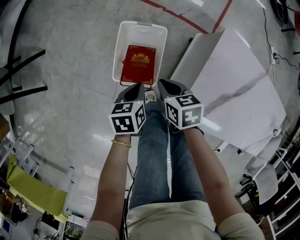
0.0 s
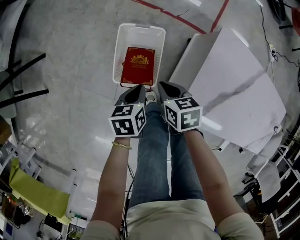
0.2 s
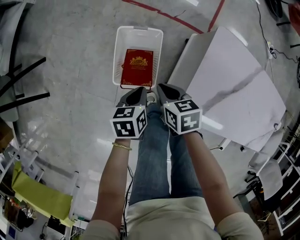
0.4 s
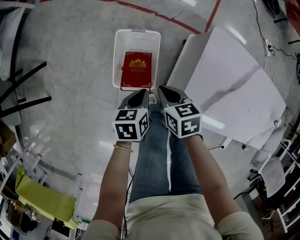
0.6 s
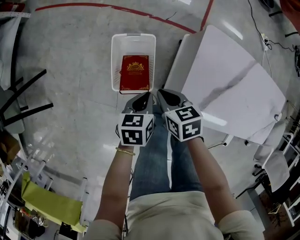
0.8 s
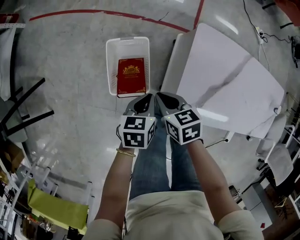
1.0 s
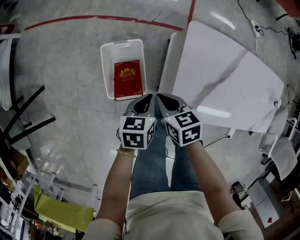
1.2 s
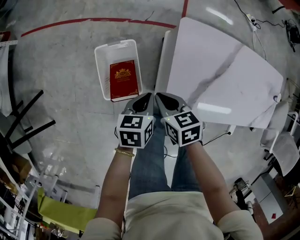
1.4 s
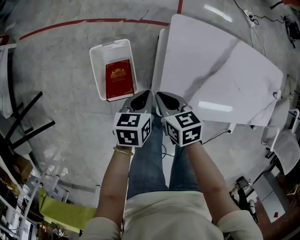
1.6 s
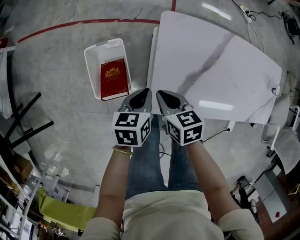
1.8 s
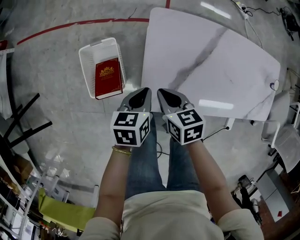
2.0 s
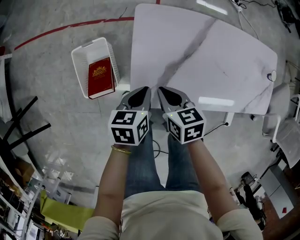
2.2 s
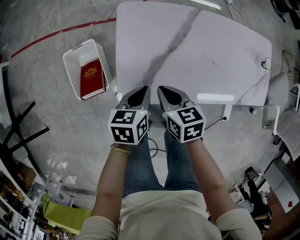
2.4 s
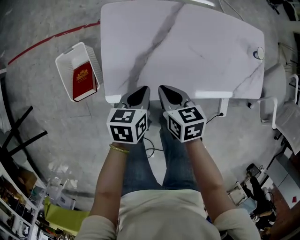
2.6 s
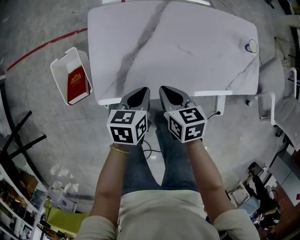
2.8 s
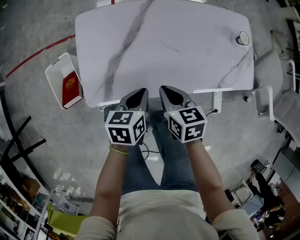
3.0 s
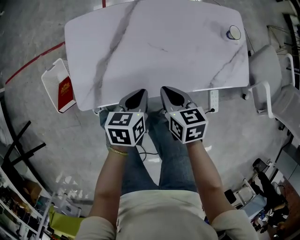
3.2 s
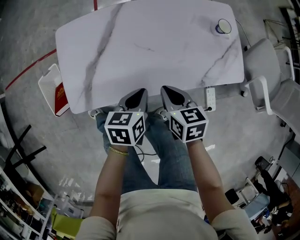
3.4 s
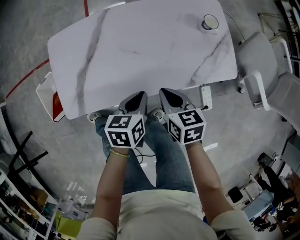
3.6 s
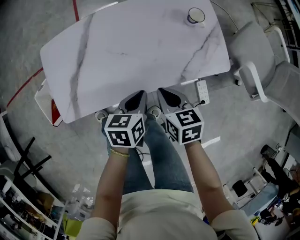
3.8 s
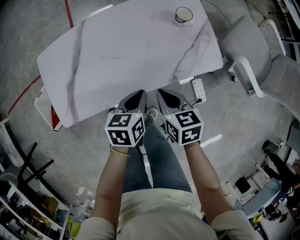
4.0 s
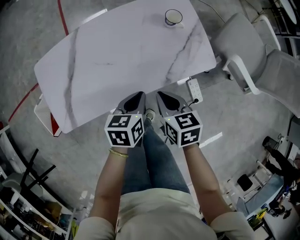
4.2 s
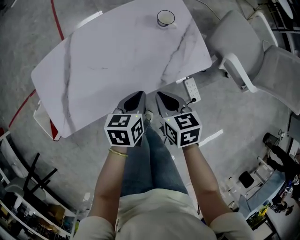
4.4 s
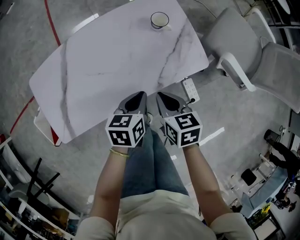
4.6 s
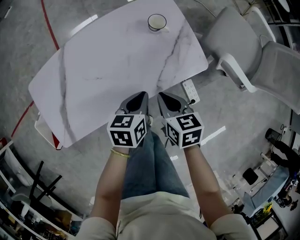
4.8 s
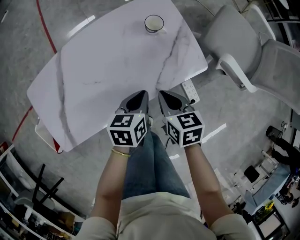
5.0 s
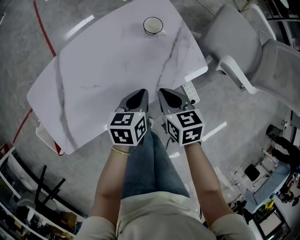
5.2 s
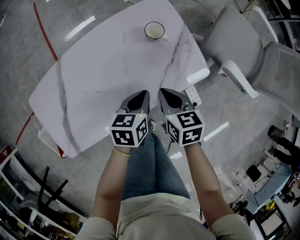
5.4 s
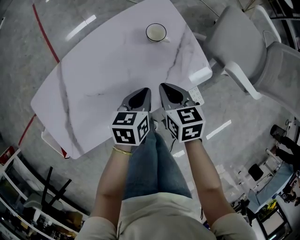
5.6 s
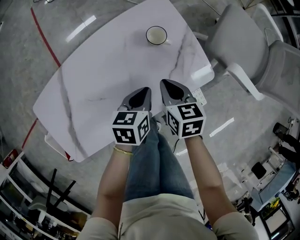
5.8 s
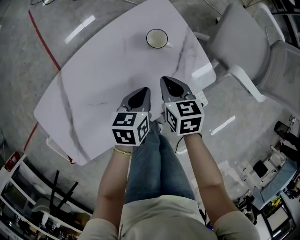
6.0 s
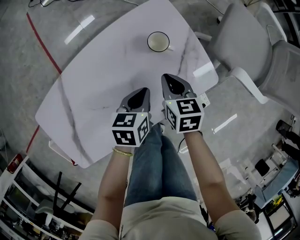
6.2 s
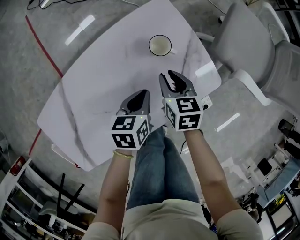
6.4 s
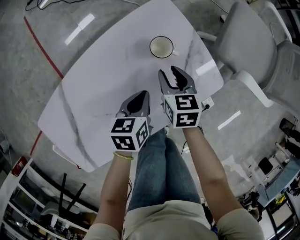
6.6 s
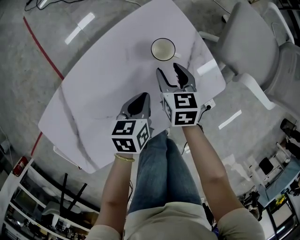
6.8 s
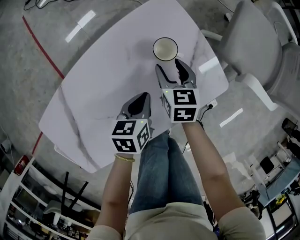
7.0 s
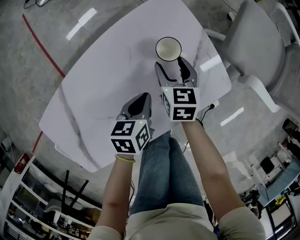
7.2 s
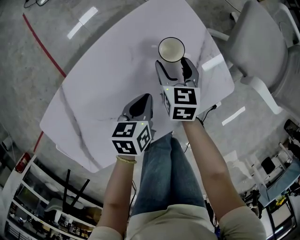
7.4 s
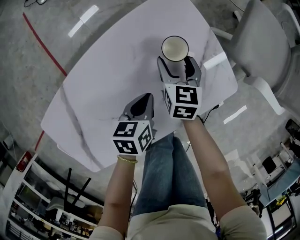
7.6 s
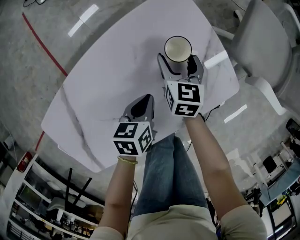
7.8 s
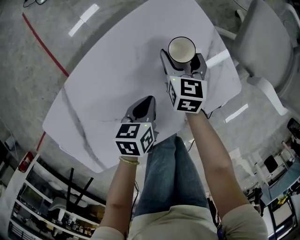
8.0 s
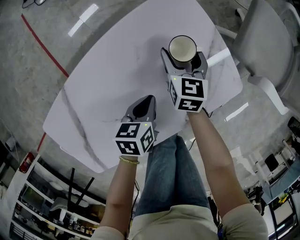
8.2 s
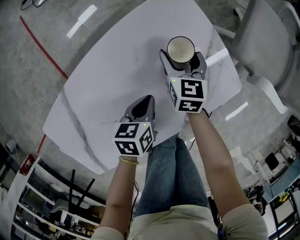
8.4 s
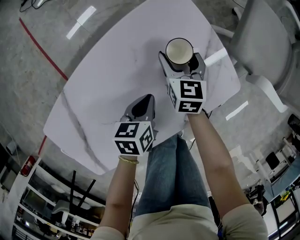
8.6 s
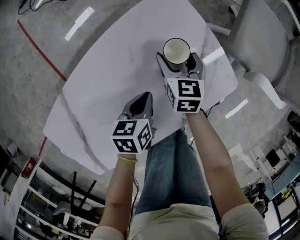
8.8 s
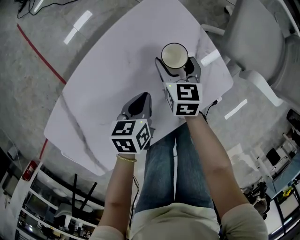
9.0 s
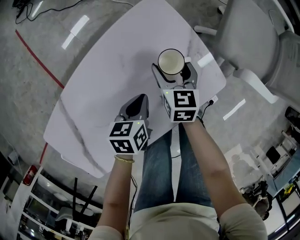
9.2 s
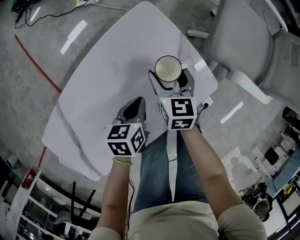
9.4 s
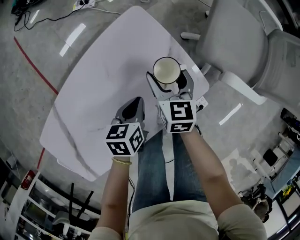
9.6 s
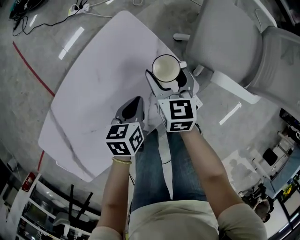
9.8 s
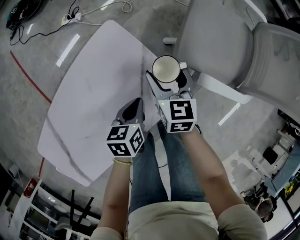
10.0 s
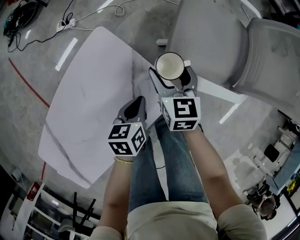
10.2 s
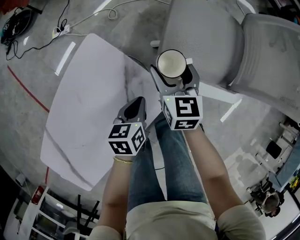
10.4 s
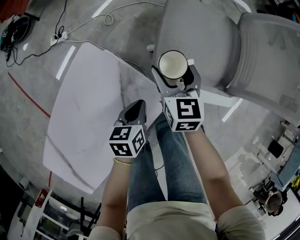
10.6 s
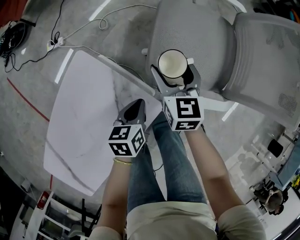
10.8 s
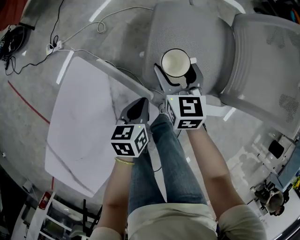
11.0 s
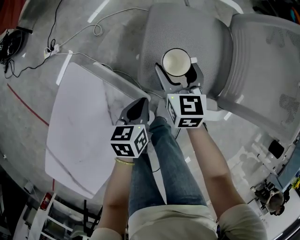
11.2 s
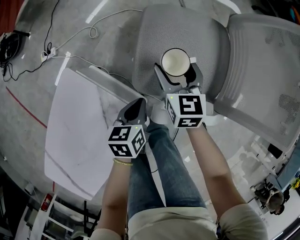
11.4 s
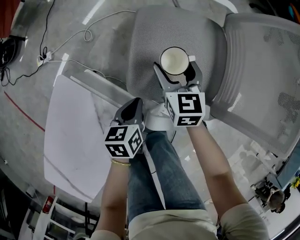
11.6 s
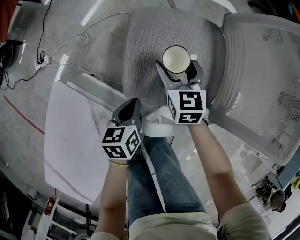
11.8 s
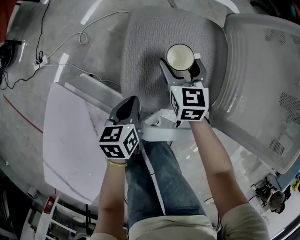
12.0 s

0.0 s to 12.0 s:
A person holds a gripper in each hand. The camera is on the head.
0.0 to 1.6 s: Both grippers move to the right and upward, about 15 cm. The left gripper turns by approximately 30 degrees.
1.6 to 3.0 s: The two grippers go approximately 40 cm to the right.
3.0 to 4.4 s: Both grippers move to the right, roughly 30 cm.
4.4 to 6.0 s: Both grippers travel together forward, approximately 15 cm.
6.0 to 7.6 s: The left gripper heads downward and to the left, covering about 10 cm. Meanwhile the right gripper travels forward and downward by some 15 cm, and opens its fingers.
7.6 to 9.0 s: The grippers stay close to where they were, moving slightly.
9.0 to 10.4 s: The right gripper heads to the right, upward and forward, covering about 30 cm. Meanwhile the left gripper goes approximately 25 cm to the right and forward.
10.4 to 12.0 s: The left gripper moves forward and to the right, some 25 cm, while the right gripper is displaced forward, to the right and downward by about 30 cm.

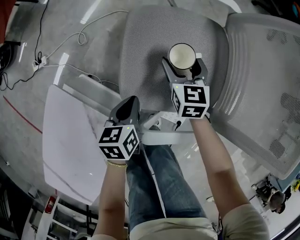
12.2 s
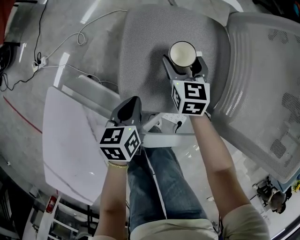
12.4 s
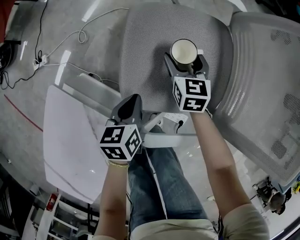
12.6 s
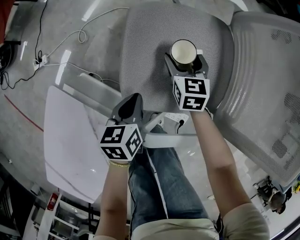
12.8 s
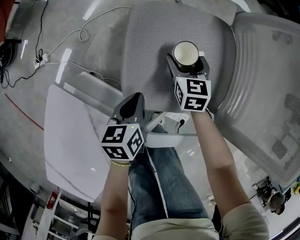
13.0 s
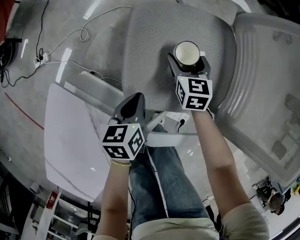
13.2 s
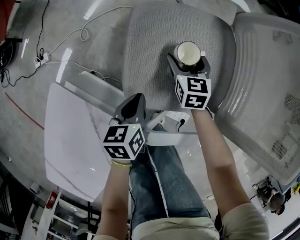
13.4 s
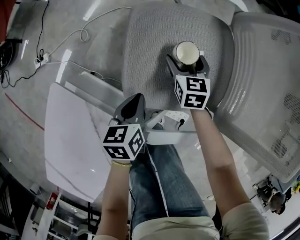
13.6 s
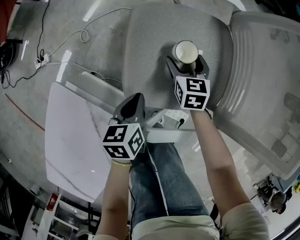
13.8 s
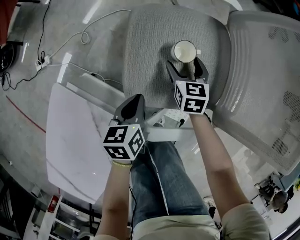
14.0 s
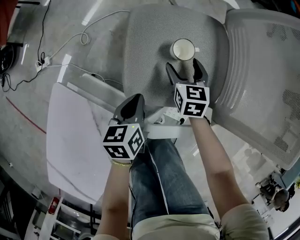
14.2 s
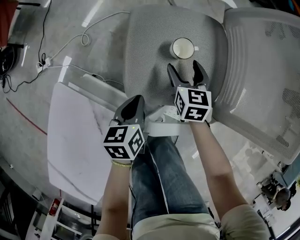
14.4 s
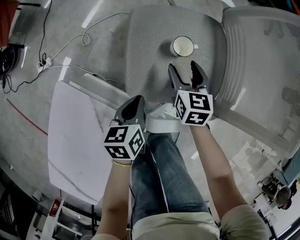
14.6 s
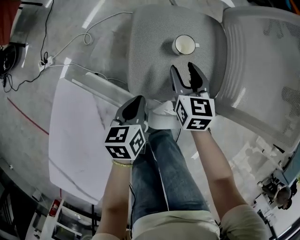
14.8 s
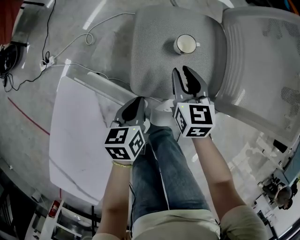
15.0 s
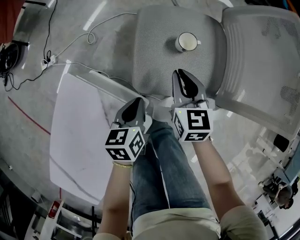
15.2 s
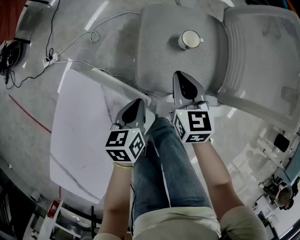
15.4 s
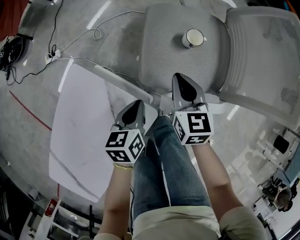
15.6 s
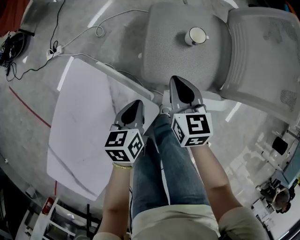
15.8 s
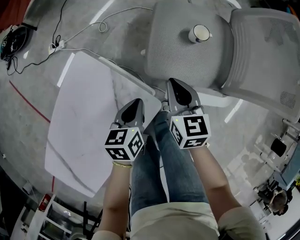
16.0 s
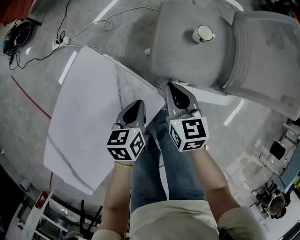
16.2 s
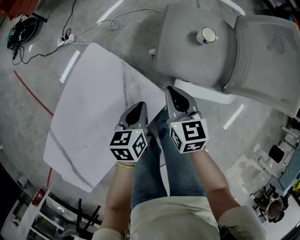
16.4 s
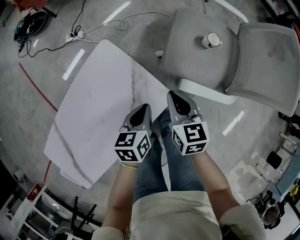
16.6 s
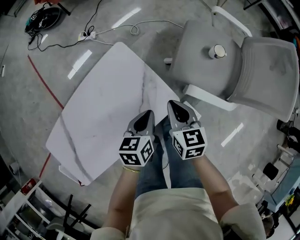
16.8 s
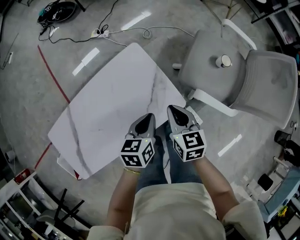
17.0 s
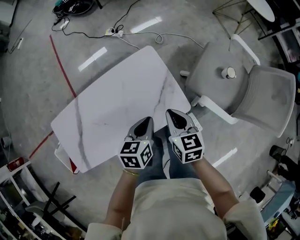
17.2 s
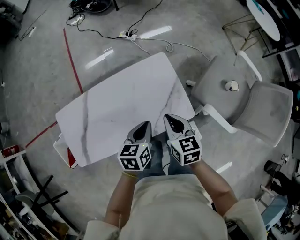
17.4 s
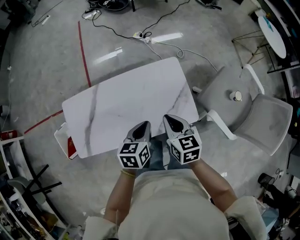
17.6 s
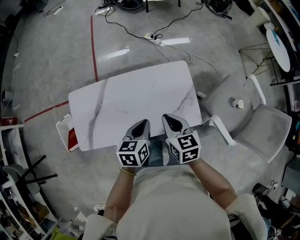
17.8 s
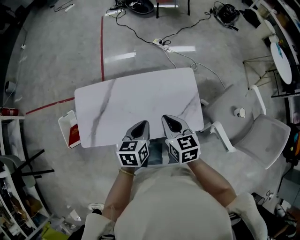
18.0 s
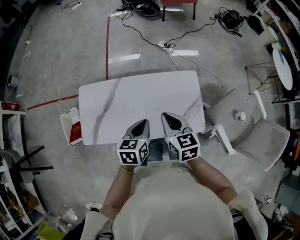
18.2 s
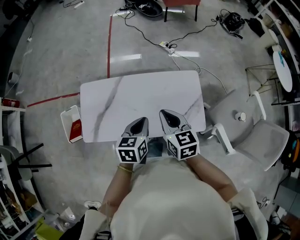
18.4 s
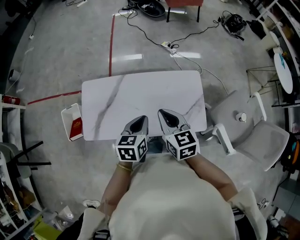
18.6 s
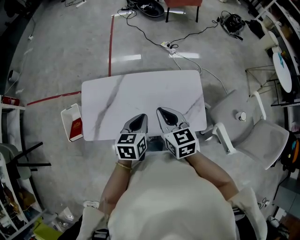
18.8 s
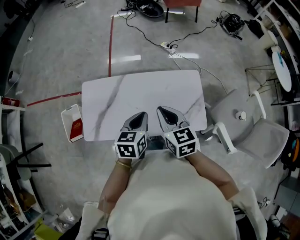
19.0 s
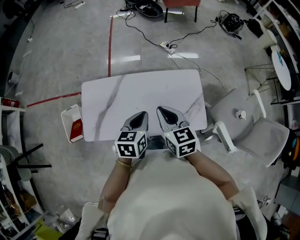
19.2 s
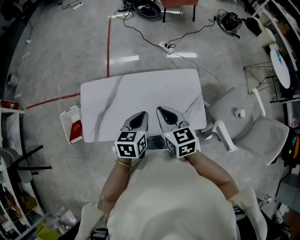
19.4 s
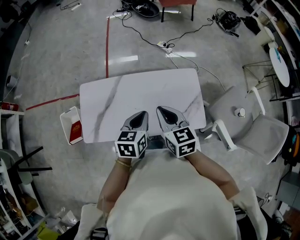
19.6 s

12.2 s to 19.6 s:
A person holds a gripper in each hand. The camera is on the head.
12.2 to 13.6 s: The right gripper heads downward, covering some 5 cm.
13.6 to 15.2 s: The right gripper moves upward and backward, roughly 20 cm, and closes up, while the left gripper heads backward and upward, covering about 10 cm.
15.2 to 16.6 s: The left gripper goes some 20 cm backward, to the left and upward. Meanwhile the right gripper shifts approximately 25 cm backward and to the left.
16.6 to 18.2 s: The left gripper ends up some 40 cm from where it was, and swivels approximately 40 degrees, while the right gripper shifts by some 40 cm, and changes its angle by about 50 degrees.
18.2 to 19.6 s: The right gripper ends up roughly 5 cm from where it was.

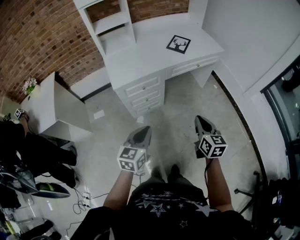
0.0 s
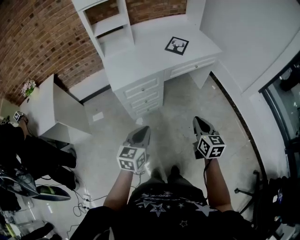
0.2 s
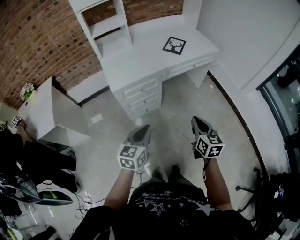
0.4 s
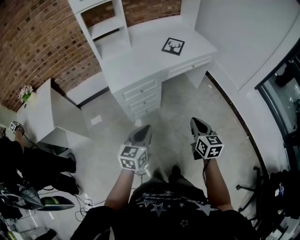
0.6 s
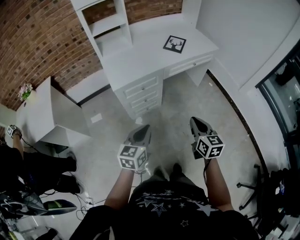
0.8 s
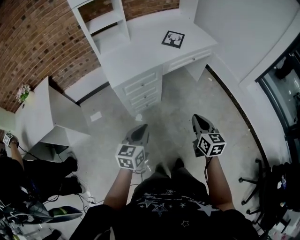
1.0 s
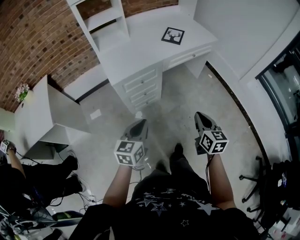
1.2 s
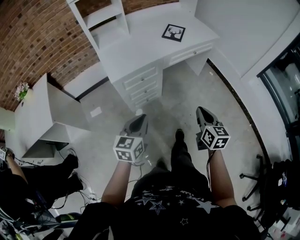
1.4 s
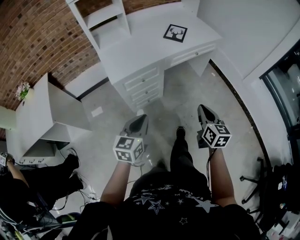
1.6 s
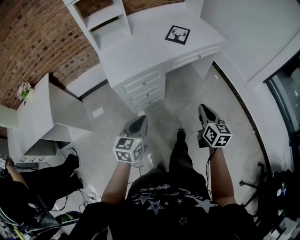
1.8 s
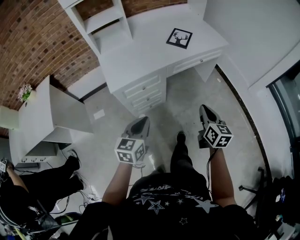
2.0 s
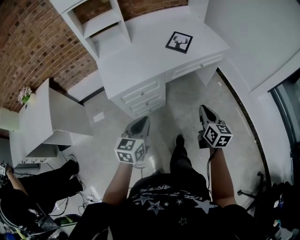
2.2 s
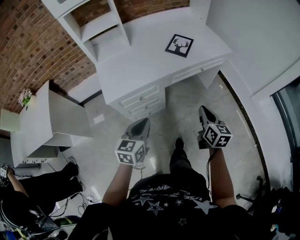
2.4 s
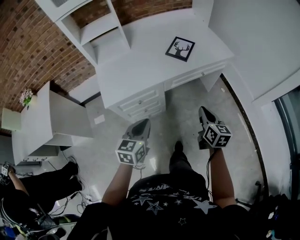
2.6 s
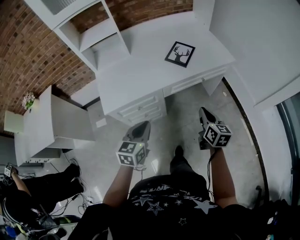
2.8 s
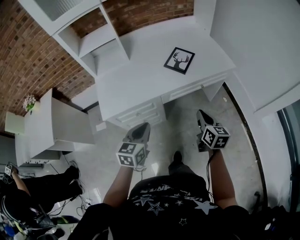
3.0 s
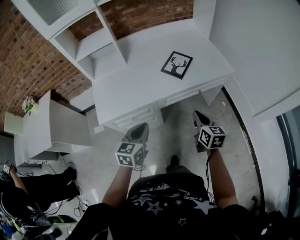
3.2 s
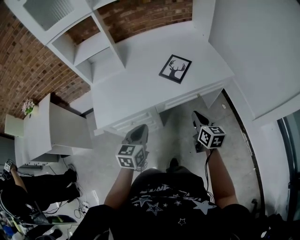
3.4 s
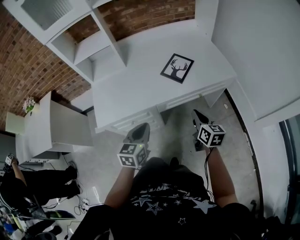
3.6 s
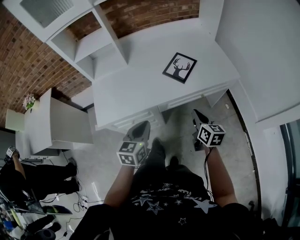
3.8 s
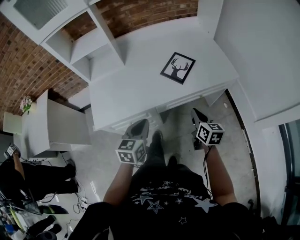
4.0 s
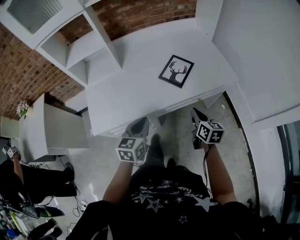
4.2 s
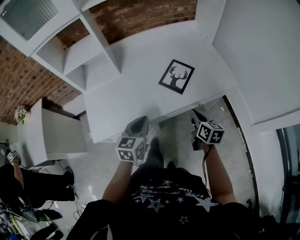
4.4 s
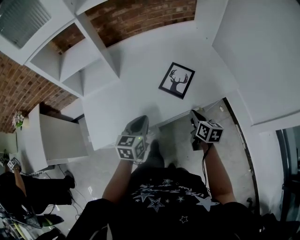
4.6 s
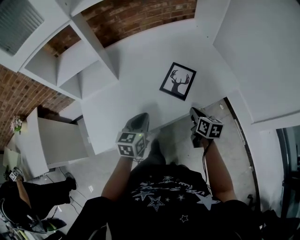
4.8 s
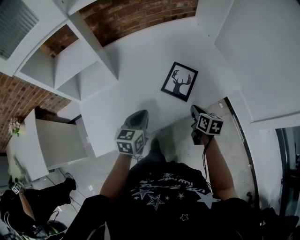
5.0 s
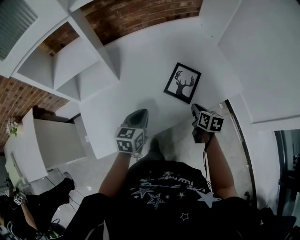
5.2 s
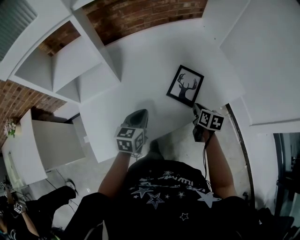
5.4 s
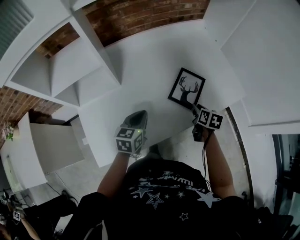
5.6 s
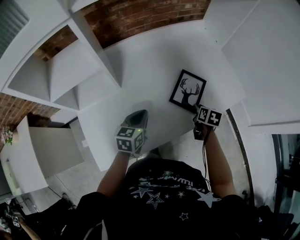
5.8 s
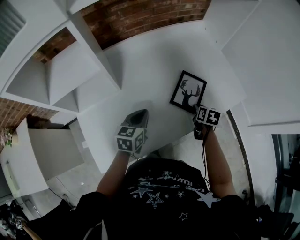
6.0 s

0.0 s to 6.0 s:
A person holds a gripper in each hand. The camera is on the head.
0.0 to 1.6 s: The left gripper moves about 5 cm.
1.6 to 3.0 s: Both grippers travel together forward, about 25 cm.
3.0 to 4.4 s: The grippers both shift forward by some 15 cm.
4.4 to 6.0 s: The left gripper moves forward and to the left, approximately 20 cm; the right gripper moves forward and downward, some 20 cm, changes its angle by roughly 30 degrees, and opens.
